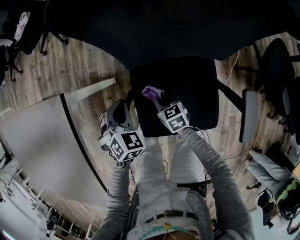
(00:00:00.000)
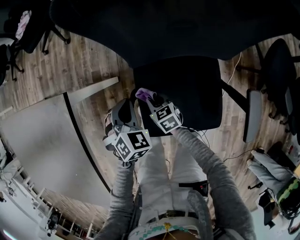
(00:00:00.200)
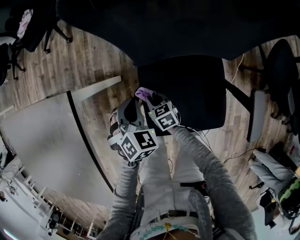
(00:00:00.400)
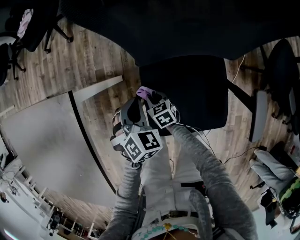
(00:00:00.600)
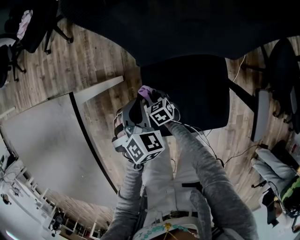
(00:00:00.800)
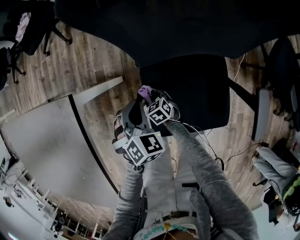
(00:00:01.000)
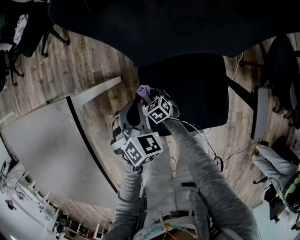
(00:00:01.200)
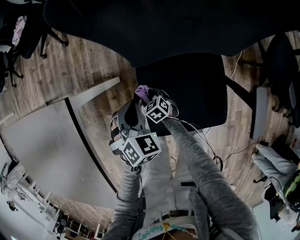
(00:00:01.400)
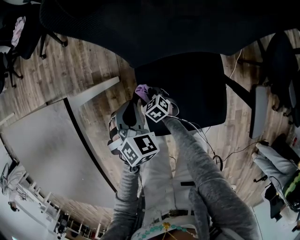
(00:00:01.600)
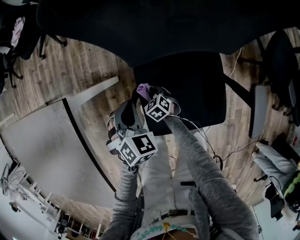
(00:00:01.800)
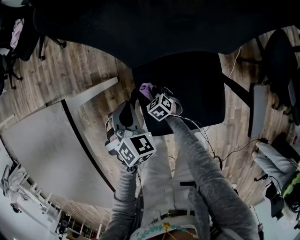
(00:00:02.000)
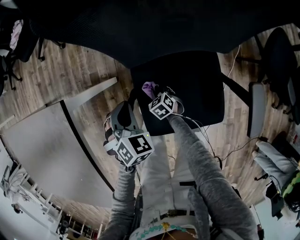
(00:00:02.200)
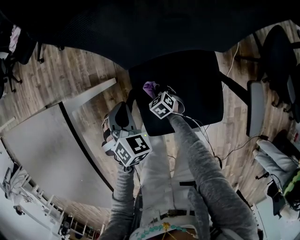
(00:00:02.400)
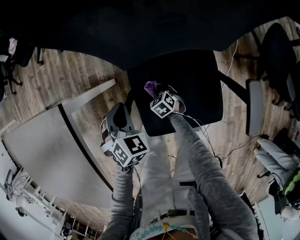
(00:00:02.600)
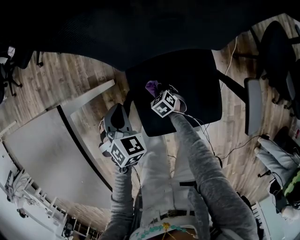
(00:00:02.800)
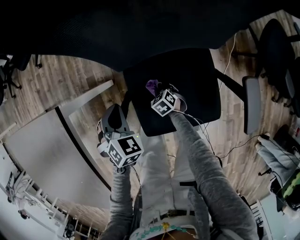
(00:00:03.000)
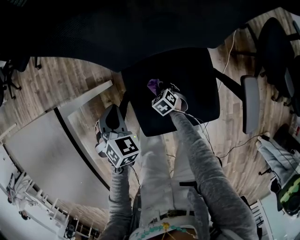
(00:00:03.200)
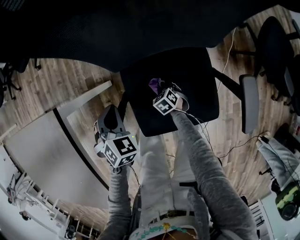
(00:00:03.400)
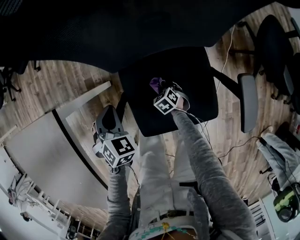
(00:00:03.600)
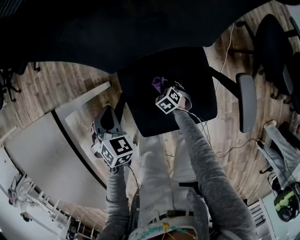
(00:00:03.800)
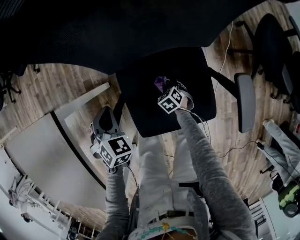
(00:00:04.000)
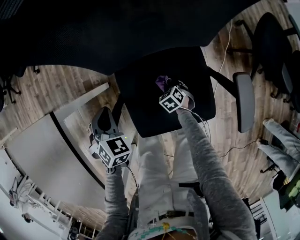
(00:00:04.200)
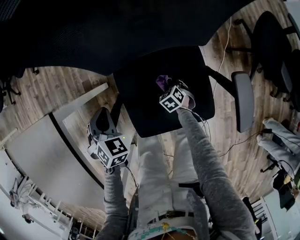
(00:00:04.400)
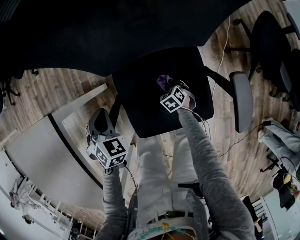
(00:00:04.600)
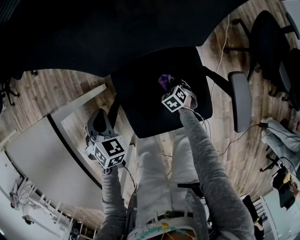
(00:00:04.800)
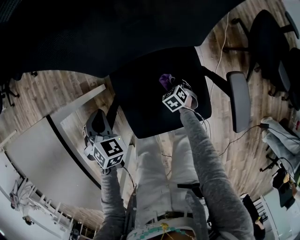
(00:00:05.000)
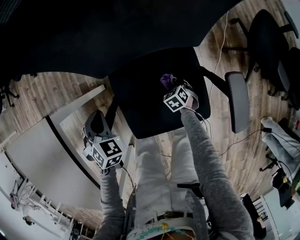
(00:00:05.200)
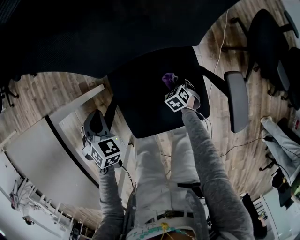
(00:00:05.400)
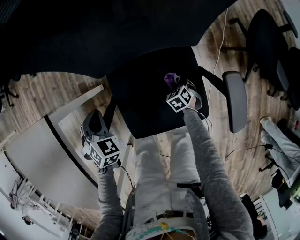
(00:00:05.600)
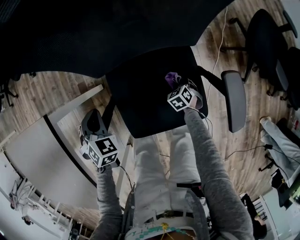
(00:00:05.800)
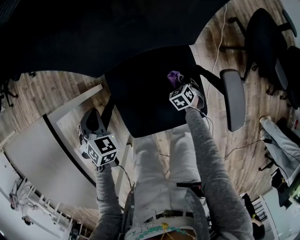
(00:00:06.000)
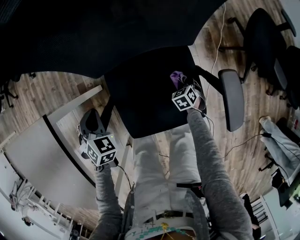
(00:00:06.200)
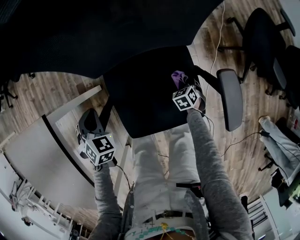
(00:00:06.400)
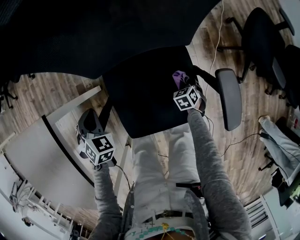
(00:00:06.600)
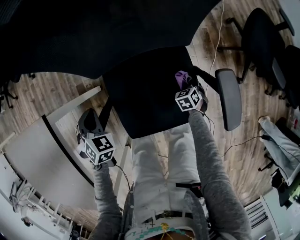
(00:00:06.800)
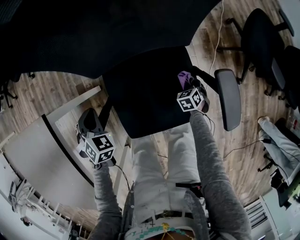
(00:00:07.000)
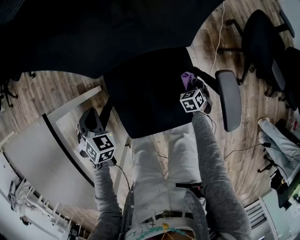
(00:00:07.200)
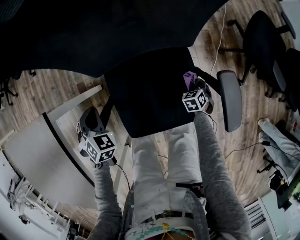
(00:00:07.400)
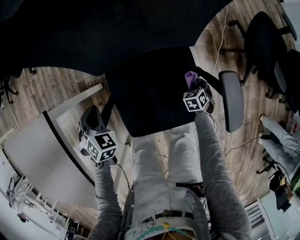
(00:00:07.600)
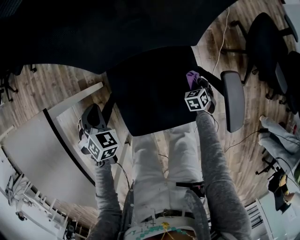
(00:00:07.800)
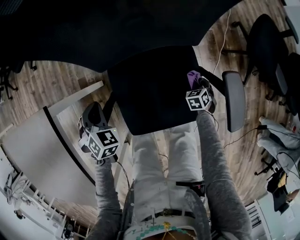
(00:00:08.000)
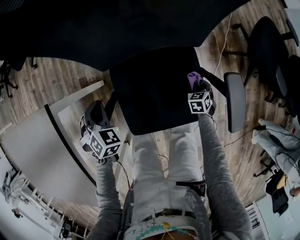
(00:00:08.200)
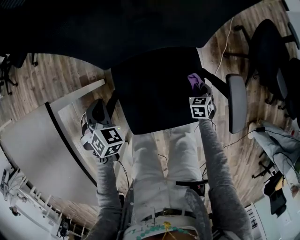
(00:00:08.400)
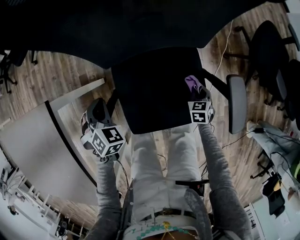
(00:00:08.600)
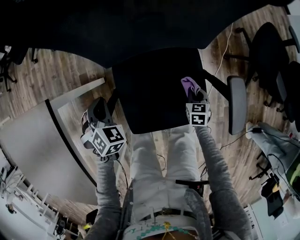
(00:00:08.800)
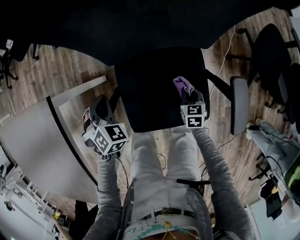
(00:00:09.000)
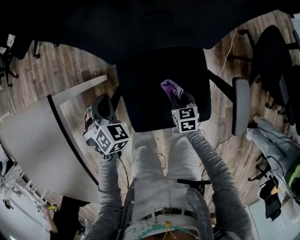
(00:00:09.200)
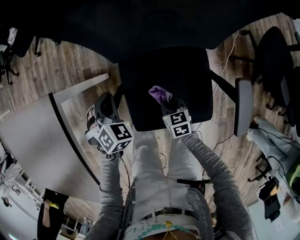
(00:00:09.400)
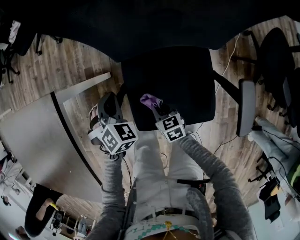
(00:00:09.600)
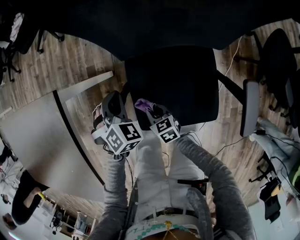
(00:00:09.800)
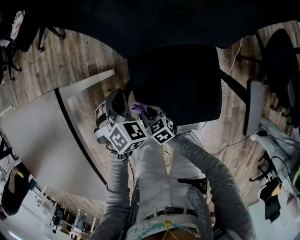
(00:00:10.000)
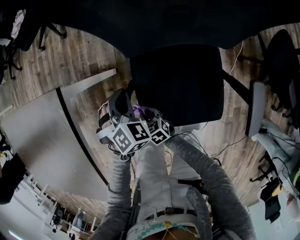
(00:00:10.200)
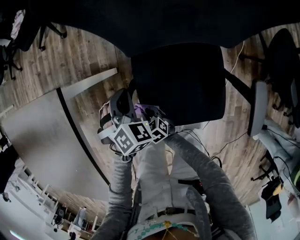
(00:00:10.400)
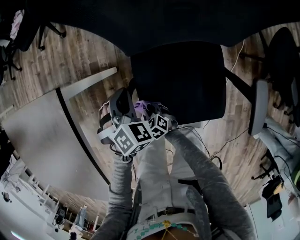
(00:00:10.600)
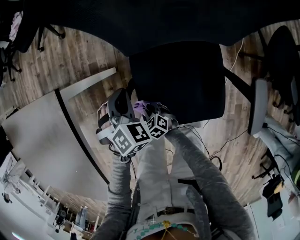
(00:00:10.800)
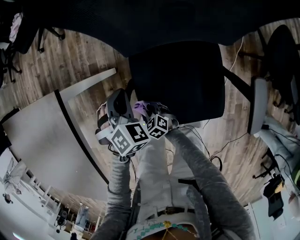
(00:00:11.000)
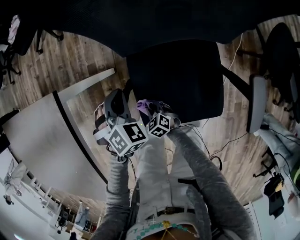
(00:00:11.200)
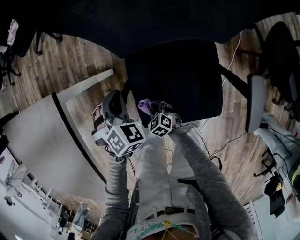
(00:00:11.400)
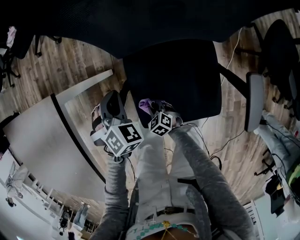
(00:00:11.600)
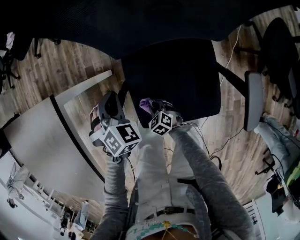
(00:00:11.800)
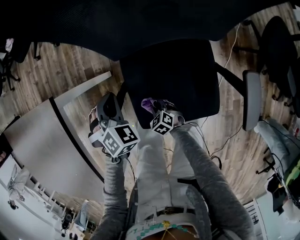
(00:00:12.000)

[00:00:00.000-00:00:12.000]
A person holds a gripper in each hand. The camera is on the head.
00:00:00.000 to 00:00:01.600: The right gripper moves downward and to the left, roughly 15 cm.
00:00:01.600 to 00:00:03.000: The right gripper is displaced to the right by approximately 10 cm.
00:00:03.000 to 00:00:04.400: The right gripper travels to the right by about 10 cm.
00:00:04.400 to 00:00:06.000: The right gripper heads to the right, covering some 10 cm.
00:00:06.000 to 00:00:07.600: The right gripper is displaced to the right by some 10 cm.
00:00:07.600 to 00:00:09.000: The right gripper moves to the left and upward, some 15 cm, and rotates approximately 30 degrees.
00:00:09.000 to 00:00:10.400: The right gripper shifts by some 35 cm, and changes its angle by some 40 degrees.
00:00:10.400 to 00:00:12.000: The right gripper goes approximately 10 cm to the right.

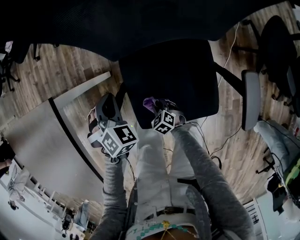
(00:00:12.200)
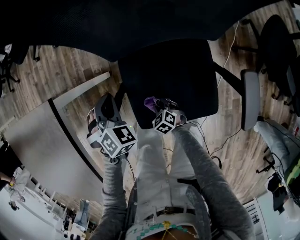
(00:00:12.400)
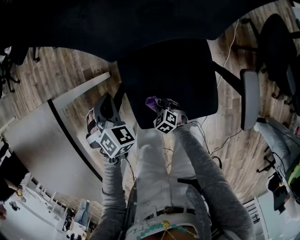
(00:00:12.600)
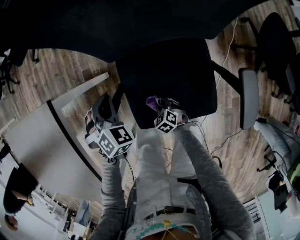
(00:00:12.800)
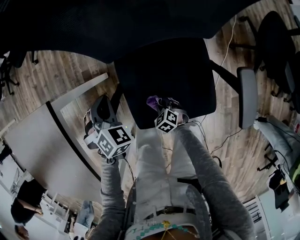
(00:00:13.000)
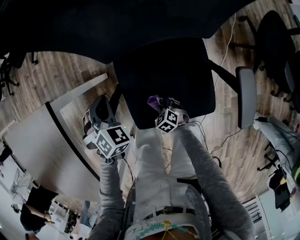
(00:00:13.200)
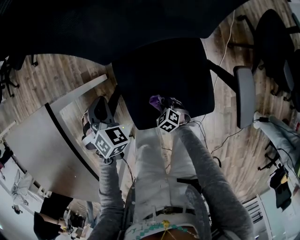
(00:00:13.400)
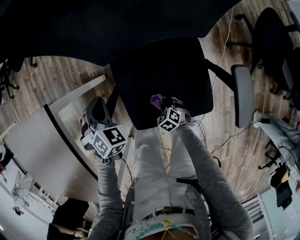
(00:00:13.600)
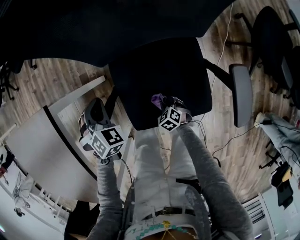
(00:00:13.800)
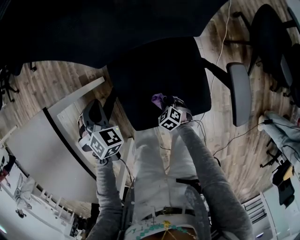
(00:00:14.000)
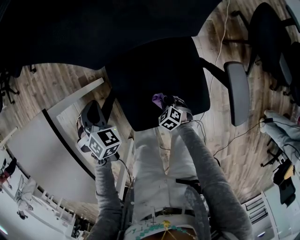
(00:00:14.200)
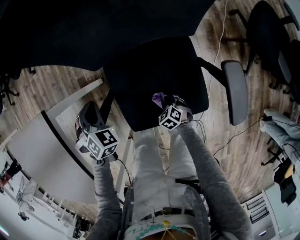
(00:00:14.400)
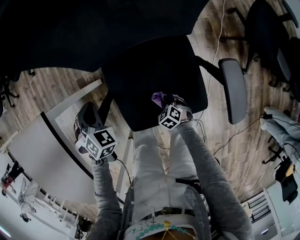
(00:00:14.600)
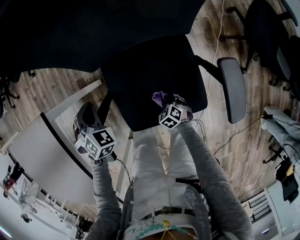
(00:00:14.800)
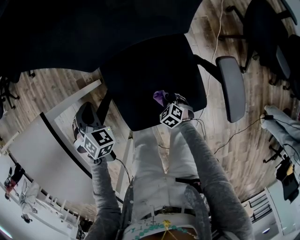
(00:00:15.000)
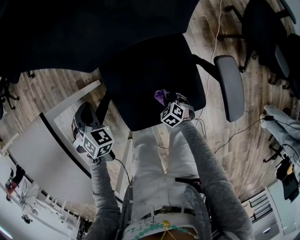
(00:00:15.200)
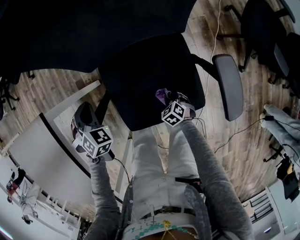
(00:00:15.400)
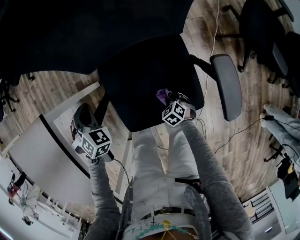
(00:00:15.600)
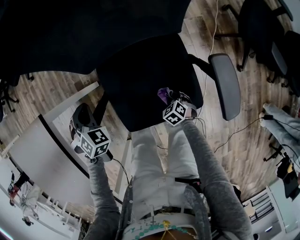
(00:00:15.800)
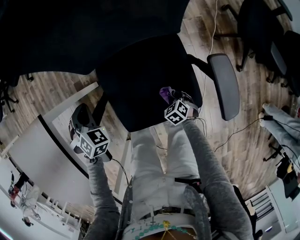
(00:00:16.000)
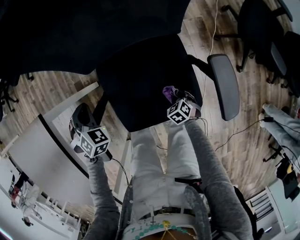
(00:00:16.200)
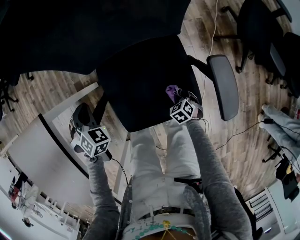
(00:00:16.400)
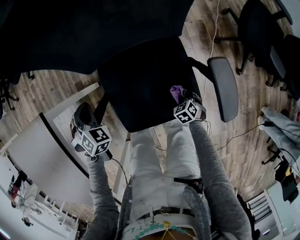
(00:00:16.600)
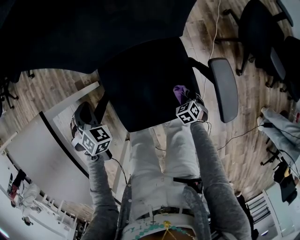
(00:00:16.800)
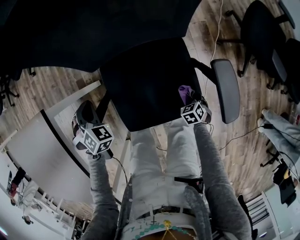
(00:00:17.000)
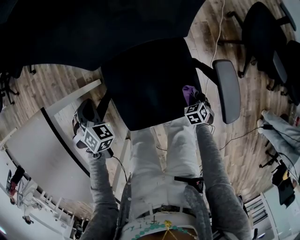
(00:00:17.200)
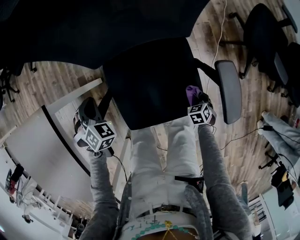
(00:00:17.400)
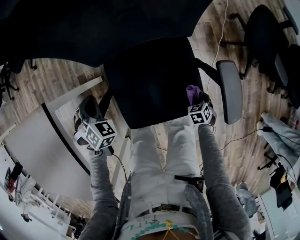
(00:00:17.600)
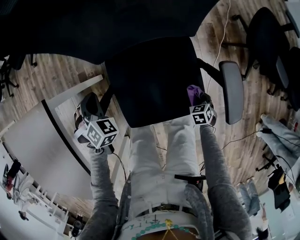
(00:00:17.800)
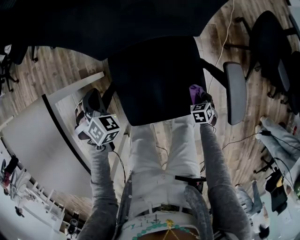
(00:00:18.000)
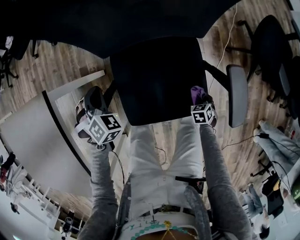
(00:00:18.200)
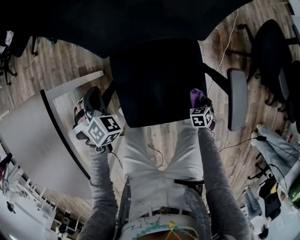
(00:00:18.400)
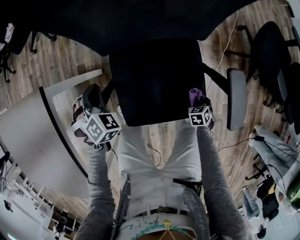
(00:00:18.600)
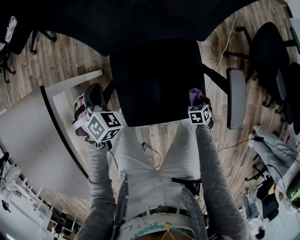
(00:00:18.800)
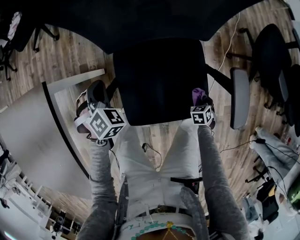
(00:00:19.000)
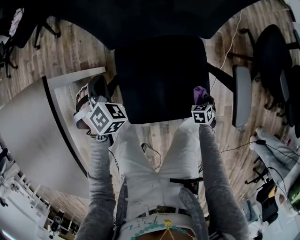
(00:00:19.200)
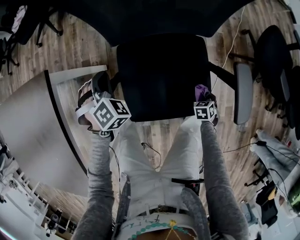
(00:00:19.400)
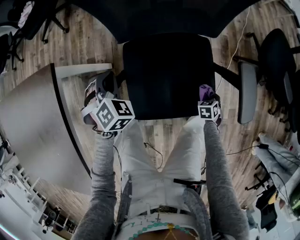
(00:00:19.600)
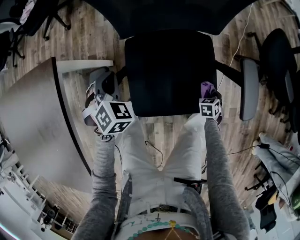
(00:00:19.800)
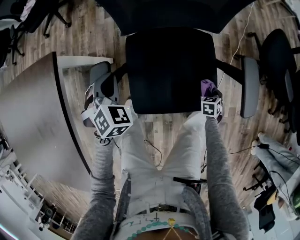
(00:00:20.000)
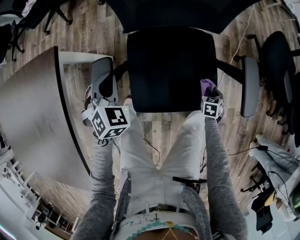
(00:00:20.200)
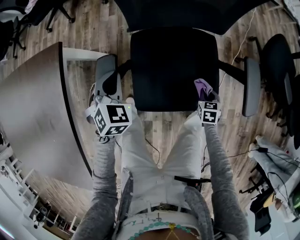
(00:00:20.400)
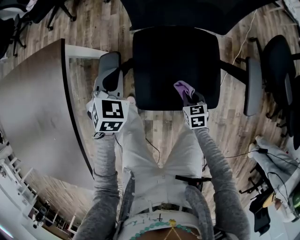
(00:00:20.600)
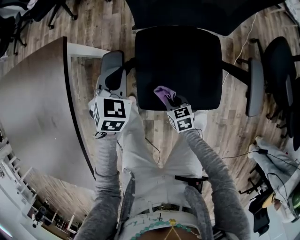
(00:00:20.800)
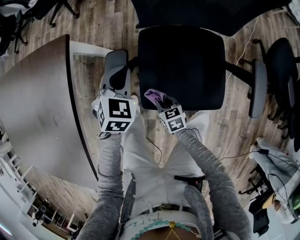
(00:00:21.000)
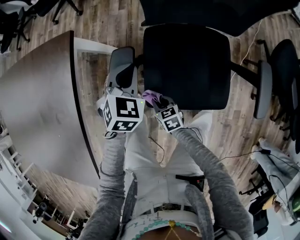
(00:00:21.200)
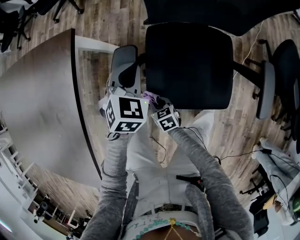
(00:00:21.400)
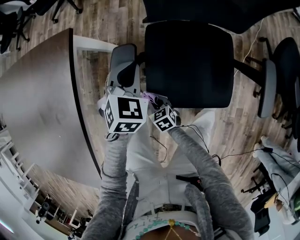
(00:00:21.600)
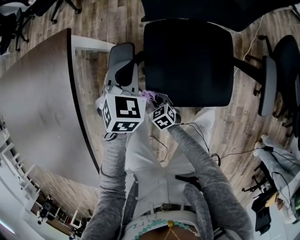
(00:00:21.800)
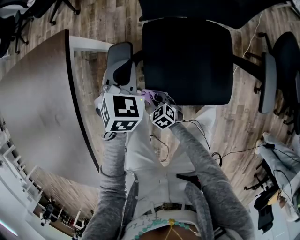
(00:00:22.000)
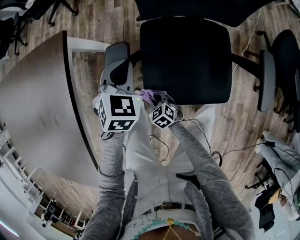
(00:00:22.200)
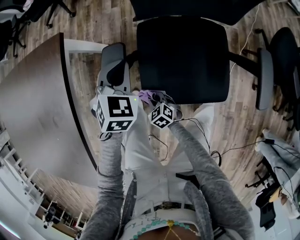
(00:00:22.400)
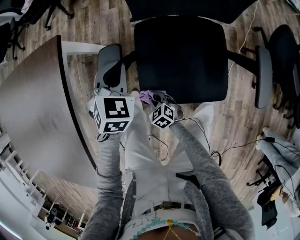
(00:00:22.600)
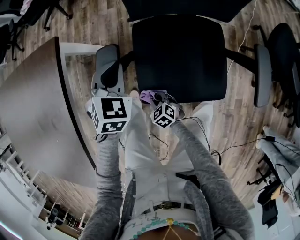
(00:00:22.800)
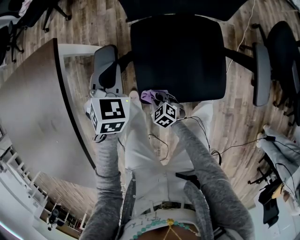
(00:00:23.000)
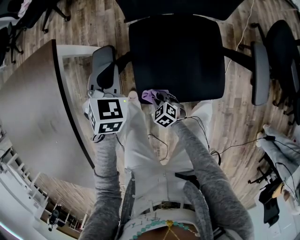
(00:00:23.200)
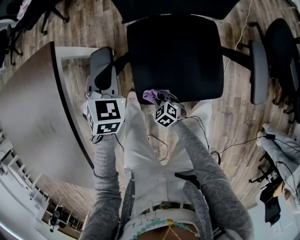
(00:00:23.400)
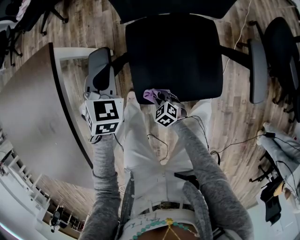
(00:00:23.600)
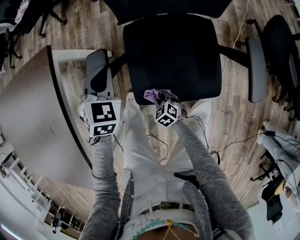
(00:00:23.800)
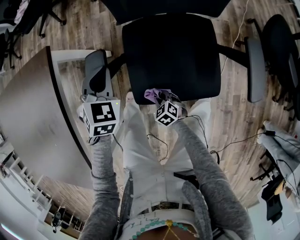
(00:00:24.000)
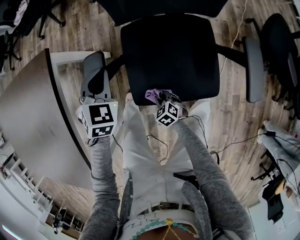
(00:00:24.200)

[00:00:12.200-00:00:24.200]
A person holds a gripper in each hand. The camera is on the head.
00:00:12.200 to 00:00:13.800: The right gripper shifts roughly 10 cm to the right.
00:00:13.800 to 00:00:15.200: The right gripper heads to the right, covering roughly 5 cm.
00:00:15.200 to 00:00:16.600: The right gripper travels to the right by some 10 cm.
00:00:16.600 to 00:00:18.200: The right gripper shifts by about 5 cm.
00:00:18.200 to 00:00:19.800: The left gripper shifts by some 5 cm.
00:00:19.800 to 00:00:21.200: The left gripper rotates about 20 degrees; the right gripper moves about 40 cm, and changes its angle by roughly 50 degrees.
00:00:21.200 to 00:00:22.600: The right gripper shifts by roughly 5 cm, and changes its angle by some 30 degrees.
00:00:22.600 to 00:00:24.200: The right gripper travels to the right by roughly 5 cm.
